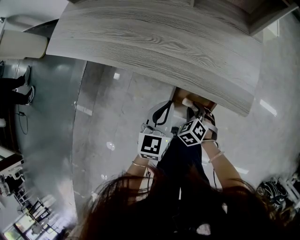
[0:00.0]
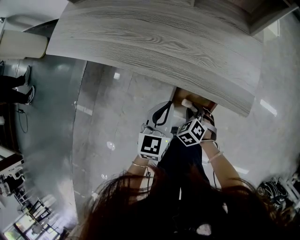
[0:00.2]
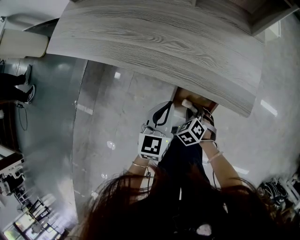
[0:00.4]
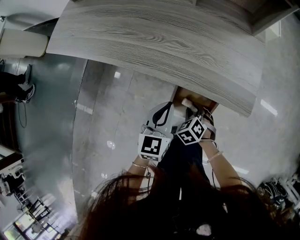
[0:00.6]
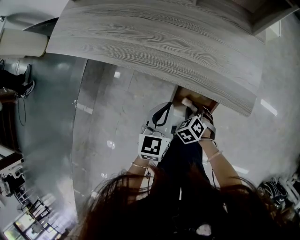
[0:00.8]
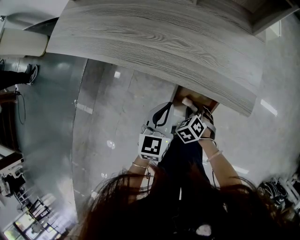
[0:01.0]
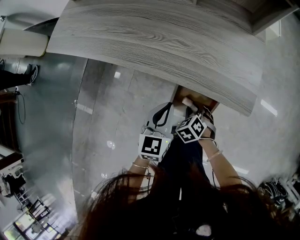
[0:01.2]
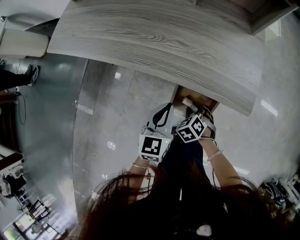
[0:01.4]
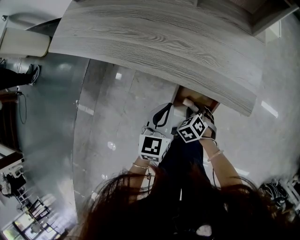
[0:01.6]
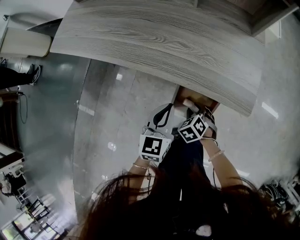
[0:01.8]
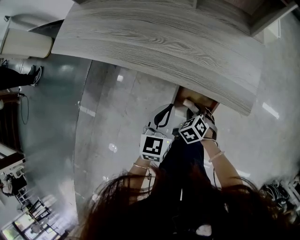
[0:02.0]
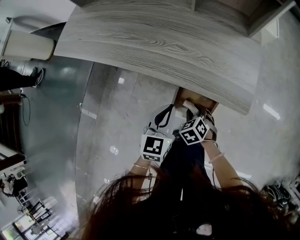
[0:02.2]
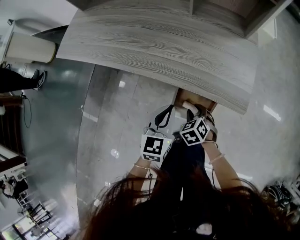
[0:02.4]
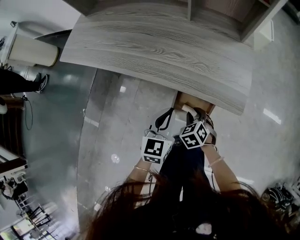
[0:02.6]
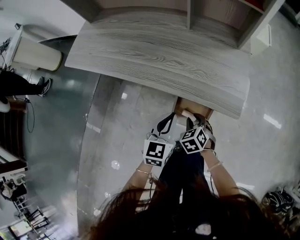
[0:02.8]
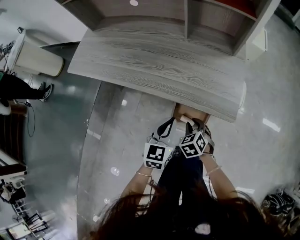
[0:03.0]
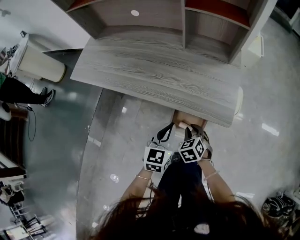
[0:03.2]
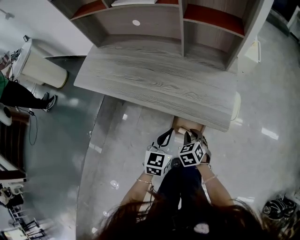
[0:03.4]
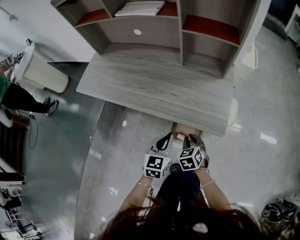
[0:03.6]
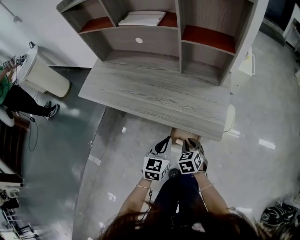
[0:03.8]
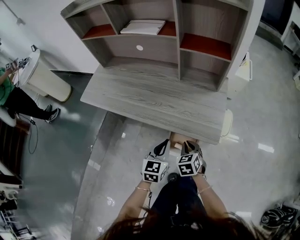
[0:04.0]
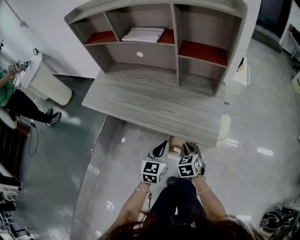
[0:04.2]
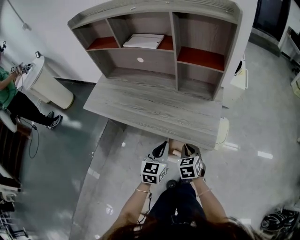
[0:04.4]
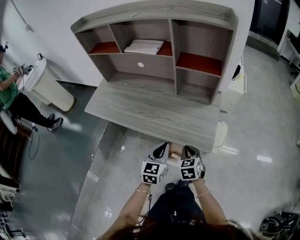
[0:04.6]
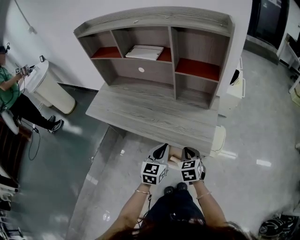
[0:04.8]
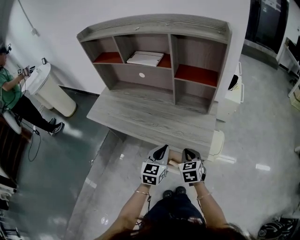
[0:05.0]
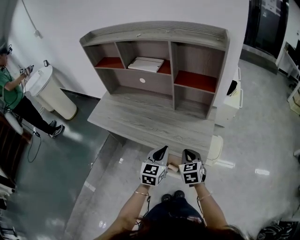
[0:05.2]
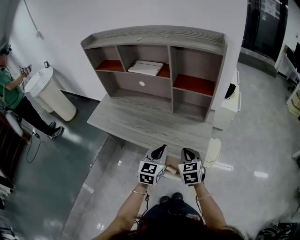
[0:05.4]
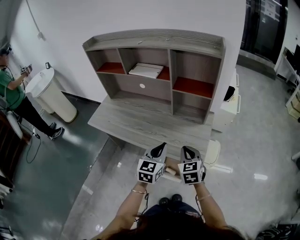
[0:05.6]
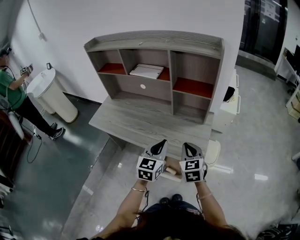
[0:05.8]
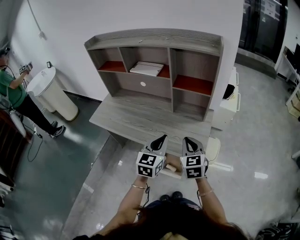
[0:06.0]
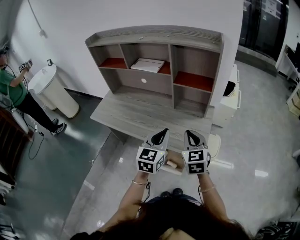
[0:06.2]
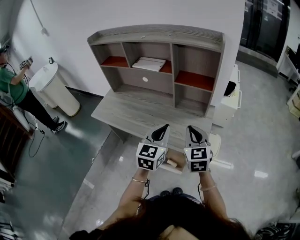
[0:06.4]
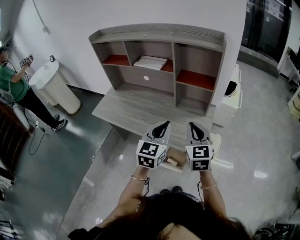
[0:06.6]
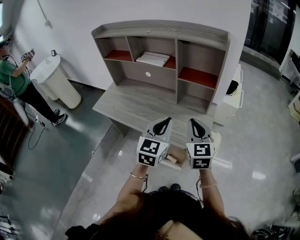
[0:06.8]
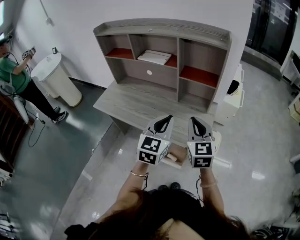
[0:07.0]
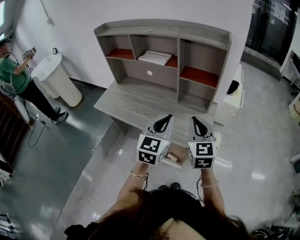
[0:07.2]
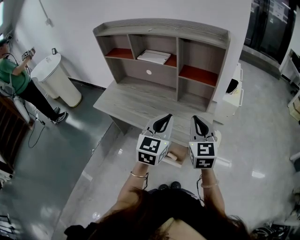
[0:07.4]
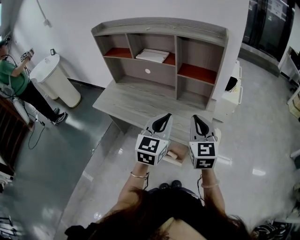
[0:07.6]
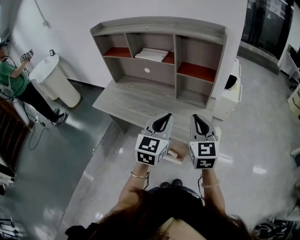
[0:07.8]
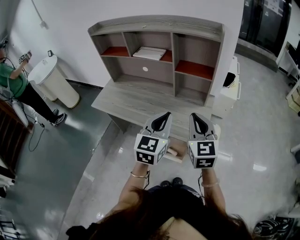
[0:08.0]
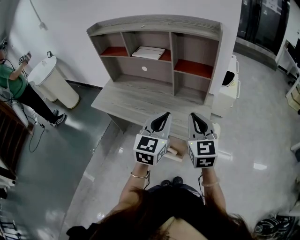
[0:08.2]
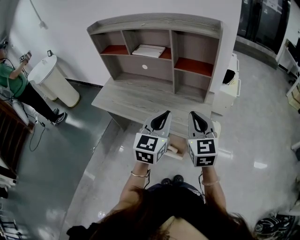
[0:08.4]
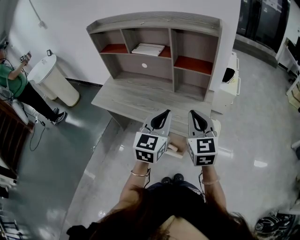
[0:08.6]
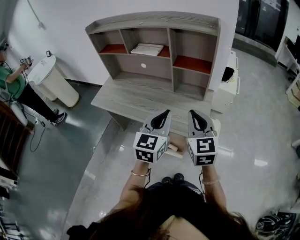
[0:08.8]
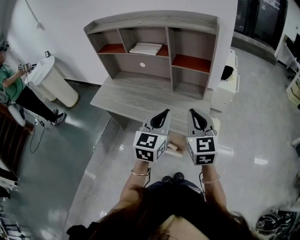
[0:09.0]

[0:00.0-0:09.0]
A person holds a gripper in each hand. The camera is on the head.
0:00.0 to 0:01.6: The grippers stay close to where they were, moving slightly.
0:01.6 to 0:03.0: The right gripper moves upward, roughly 10 cm. Meanwhile the left gripper travels upward by about 5 cm.
0:03.0 to 0:04.4: The two grippers go some 15 cm upward.
0:04.4 to 0:06.0: Both grippers move upward, approximately 20 cm. The right gripper swivels approximately 20 degrees.
0:06.0 to 0:07.6: Both grippers move upward, roughly 10 cm.
0:07.6 to 0:09.0: The grippers move only a little.

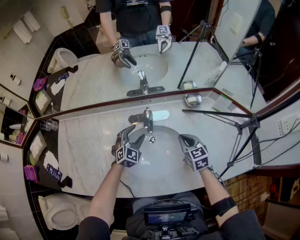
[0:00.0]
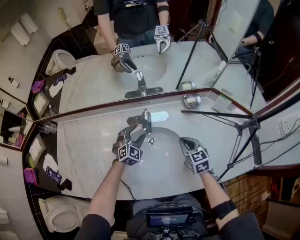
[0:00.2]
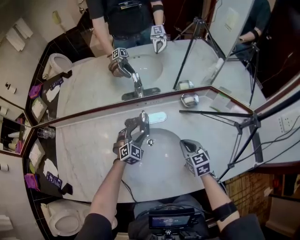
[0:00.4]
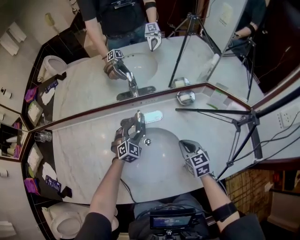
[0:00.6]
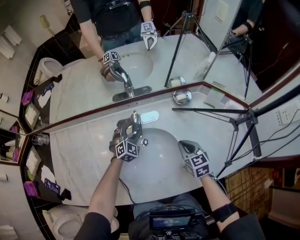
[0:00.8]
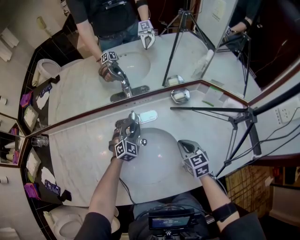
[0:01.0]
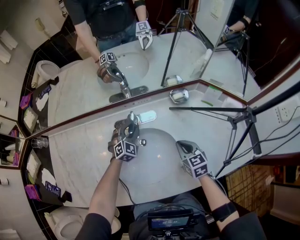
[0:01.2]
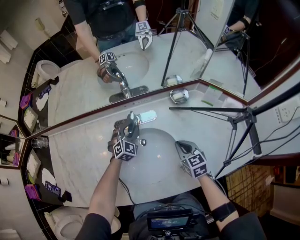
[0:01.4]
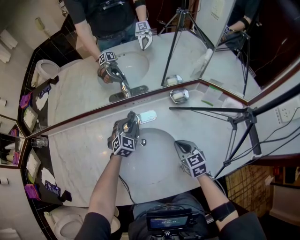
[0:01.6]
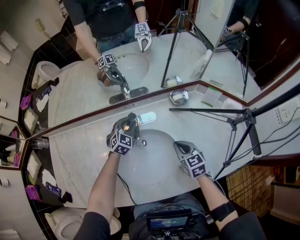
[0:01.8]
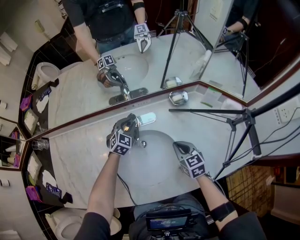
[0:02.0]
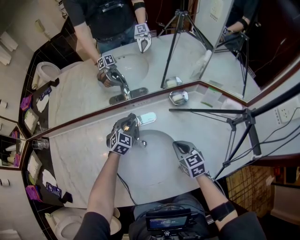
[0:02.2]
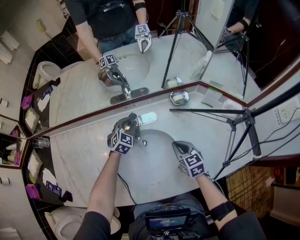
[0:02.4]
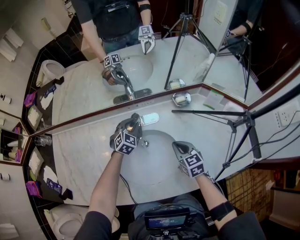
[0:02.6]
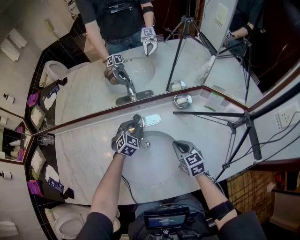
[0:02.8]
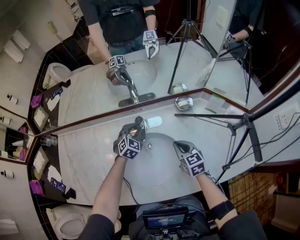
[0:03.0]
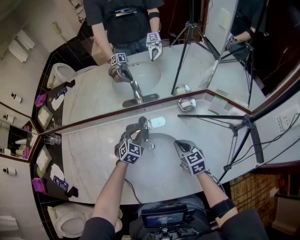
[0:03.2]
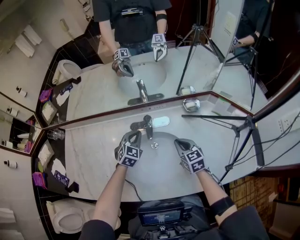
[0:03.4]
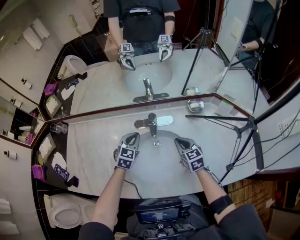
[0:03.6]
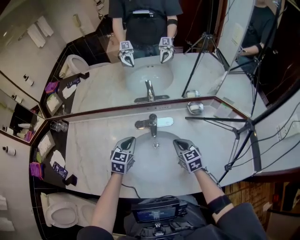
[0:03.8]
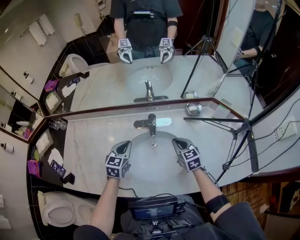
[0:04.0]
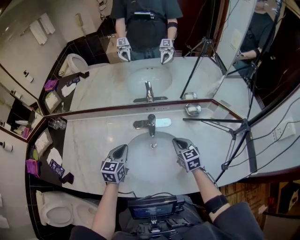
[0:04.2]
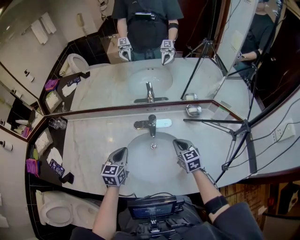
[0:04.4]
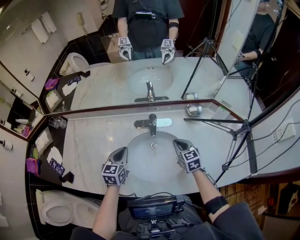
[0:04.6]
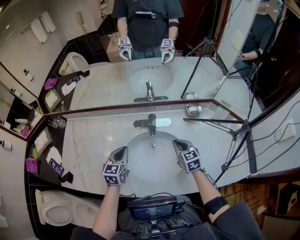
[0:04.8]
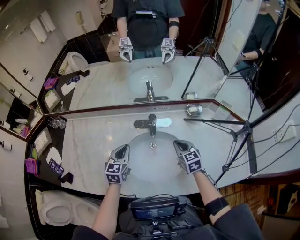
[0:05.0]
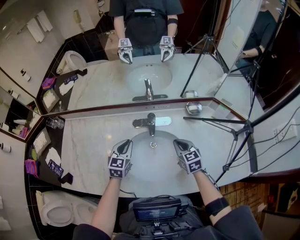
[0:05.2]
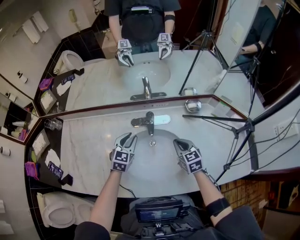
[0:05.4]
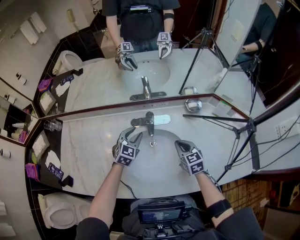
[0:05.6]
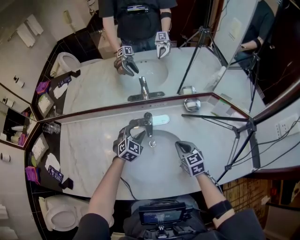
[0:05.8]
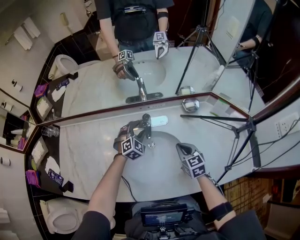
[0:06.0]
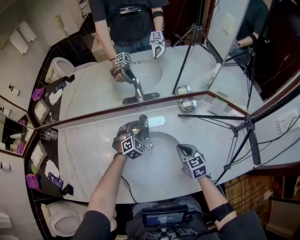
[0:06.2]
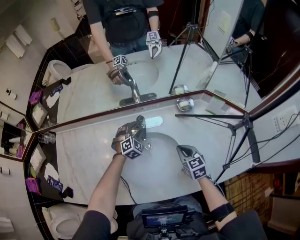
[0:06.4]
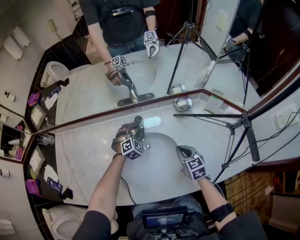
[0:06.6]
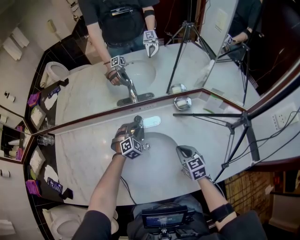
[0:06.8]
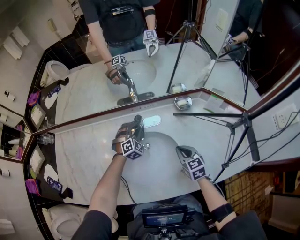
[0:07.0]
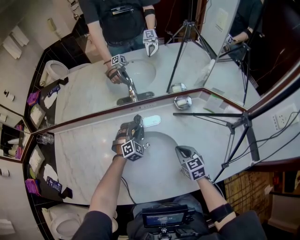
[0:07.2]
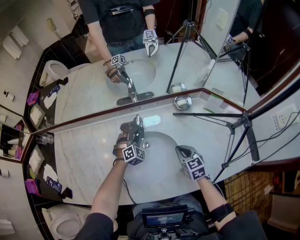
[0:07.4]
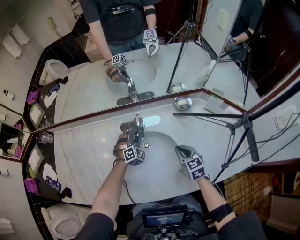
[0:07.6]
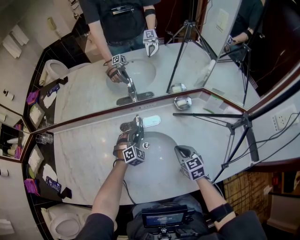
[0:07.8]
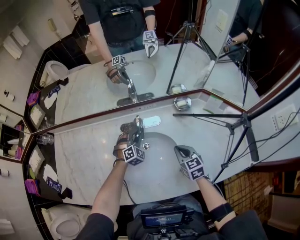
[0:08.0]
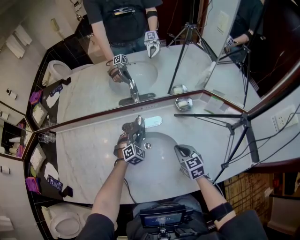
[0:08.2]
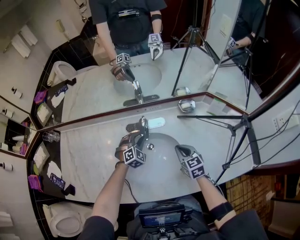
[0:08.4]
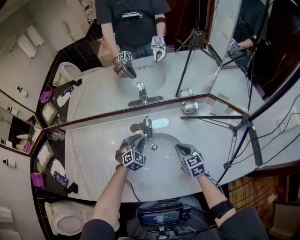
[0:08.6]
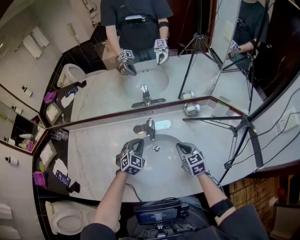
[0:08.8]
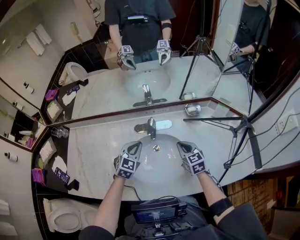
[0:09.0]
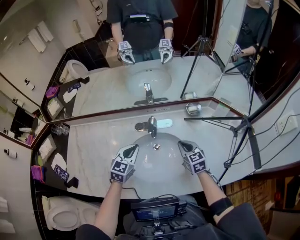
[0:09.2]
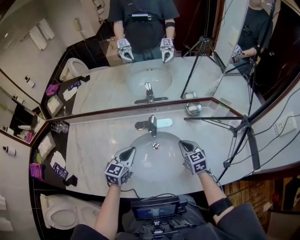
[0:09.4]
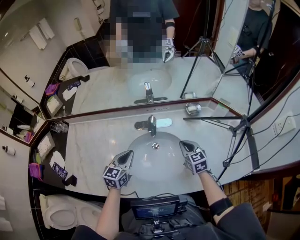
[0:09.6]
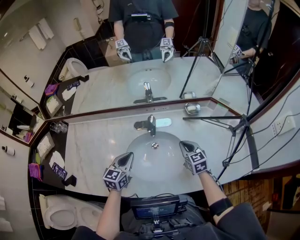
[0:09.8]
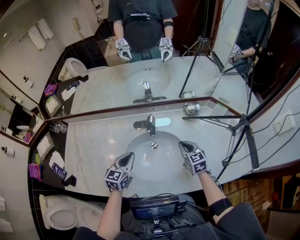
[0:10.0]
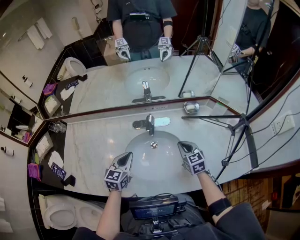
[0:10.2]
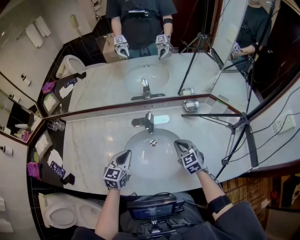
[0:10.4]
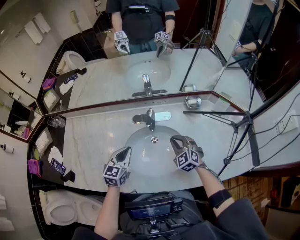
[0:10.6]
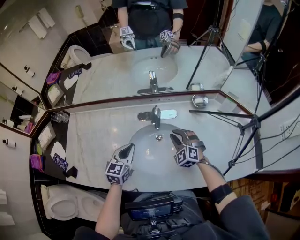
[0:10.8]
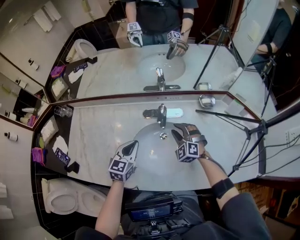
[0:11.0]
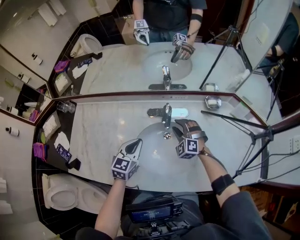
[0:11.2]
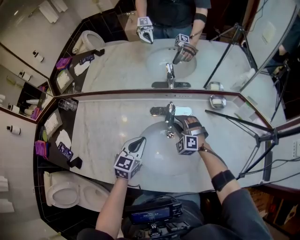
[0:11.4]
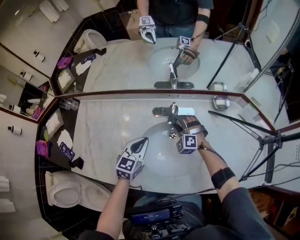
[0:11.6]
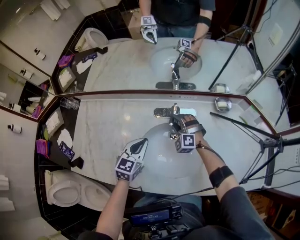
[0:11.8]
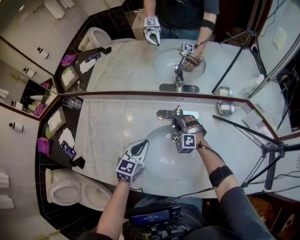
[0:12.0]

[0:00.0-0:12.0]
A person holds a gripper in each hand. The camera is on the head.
0:00.0 to 0:01.6: The left gripper heads forward and to the right, covering some 10 cm, and closes its fingers.
0:01.6 to 0:03.0: The grippers make only small movements.
0:03.0 to 0:04.4: The left gripper is displaced backward, to the left and upward by roughly 25 cm, rolls counterclockwise, seen from behind, by some 40 degrees, and closes up. The right gripper moves some 5 cm.
0:04.4 to 0:06.0: The left gripper heads forward, to the right and downward, covering approximately 20 cm, rolls clockwise, seen from behind, by some 50 degrees, and opens.
0:06.0 to 0:07.6: The left gripper closes up.
0:07.6 to 0:09.0: The right gripper changes place by approximately 5 cm; the left gripper moves upward, backward and to the left, roughly 15 cm, swivels some 30 degrees, and closes its fingers.
0:09.0 to 0:10.4: The left gripper goes about 10 cm backward and to the left, and swivels some 20 degrees.
0:10.4 to 0:12.0: The right gripper heads forward, to the left and downward, covering some 25 cm, rolls counterclockwise, seen from behind, by roughly 50 degrees, and opens up, while the left gripper travels forward by some 5 cm.

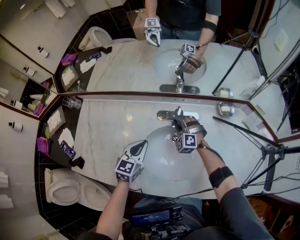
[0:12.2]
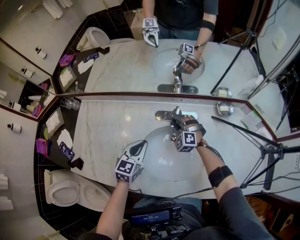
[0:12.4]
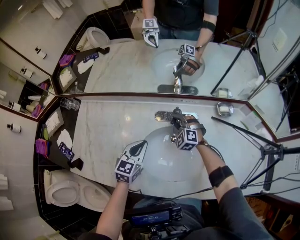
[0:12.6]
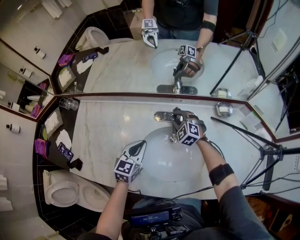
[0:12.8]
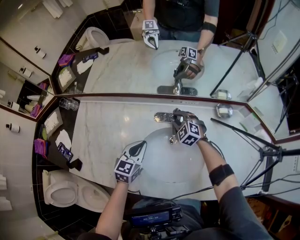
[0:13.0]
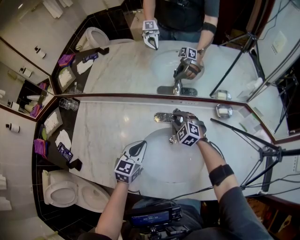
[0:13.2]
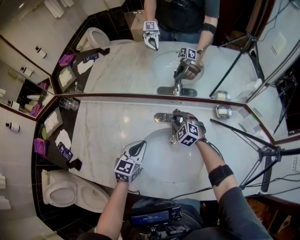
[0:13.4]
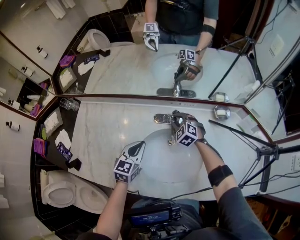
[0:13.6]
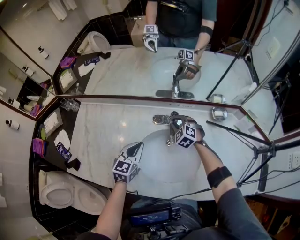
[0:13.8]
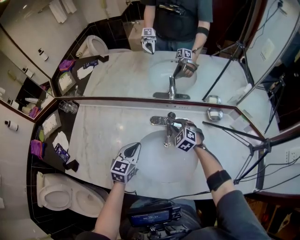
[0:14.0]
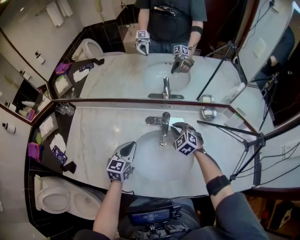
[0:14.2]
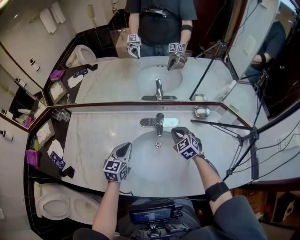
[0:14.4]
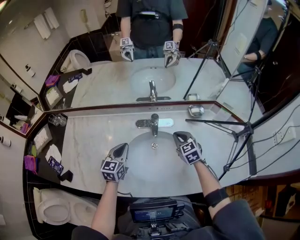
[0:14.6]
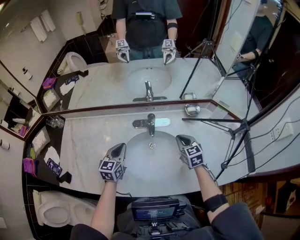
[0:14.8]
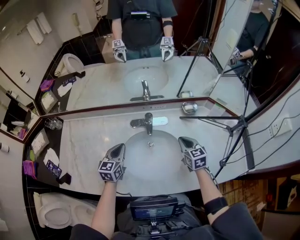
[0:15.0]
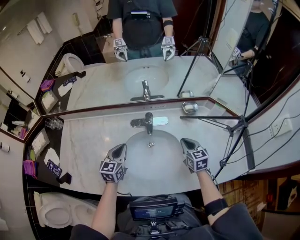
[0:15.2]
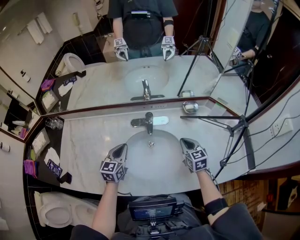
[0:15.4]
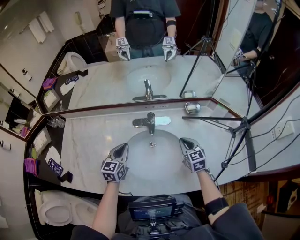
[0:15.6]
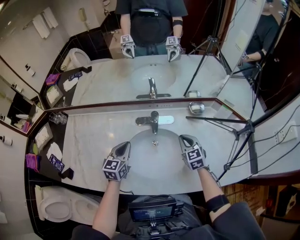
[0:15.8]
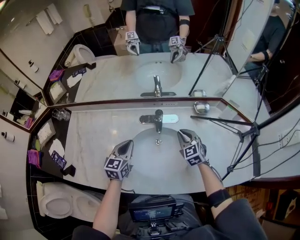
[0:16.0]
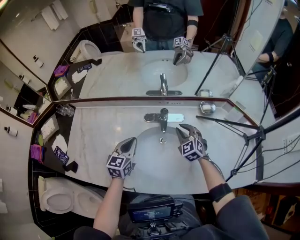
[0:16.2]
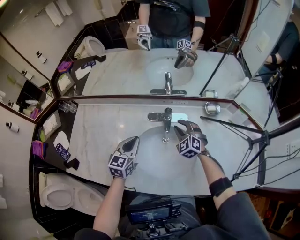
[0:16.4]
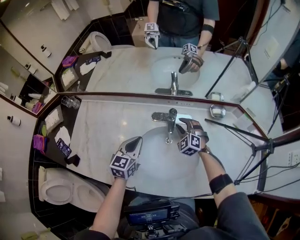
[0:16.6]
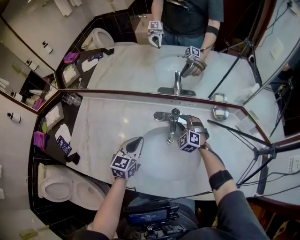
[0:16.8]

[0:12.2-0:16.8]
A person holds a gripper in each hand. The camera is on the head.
0:13.8 to 0:15.2: The right gripper moves backward, to the right and upward, approximately 25 cm, rolls clockwise, seen from behind, by roughly 50 degrees, and closes up.
0:15.2 to 0:16.8: The right gripper travels forward, to the left and downward by roughly 25 cm, twists about 60 degrees counterclockwise, seen from behind, and opens up.
